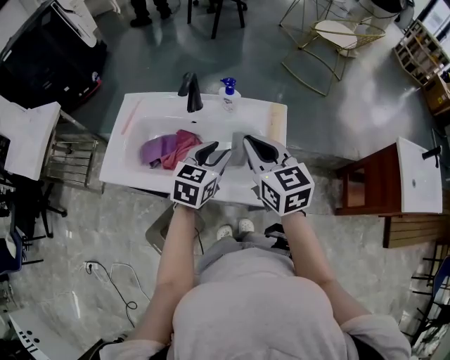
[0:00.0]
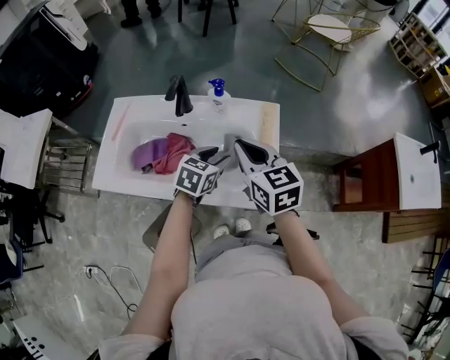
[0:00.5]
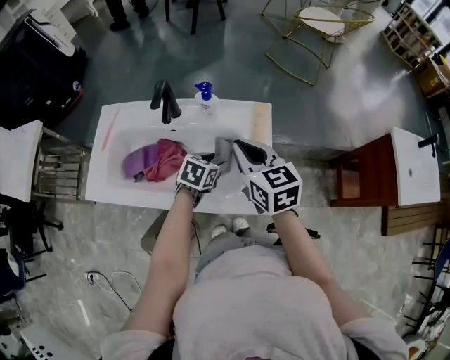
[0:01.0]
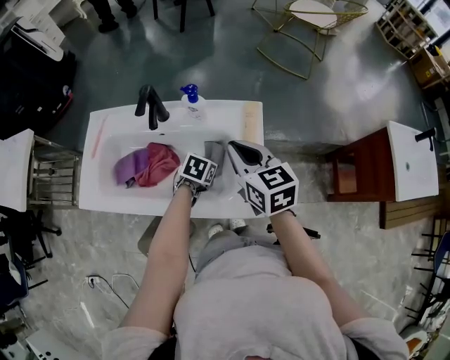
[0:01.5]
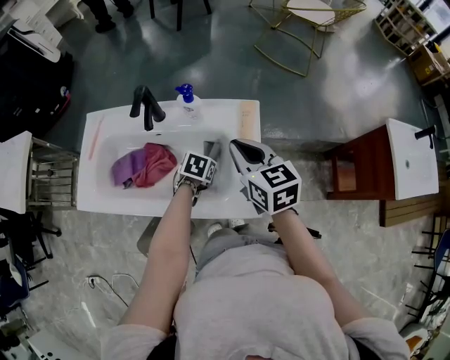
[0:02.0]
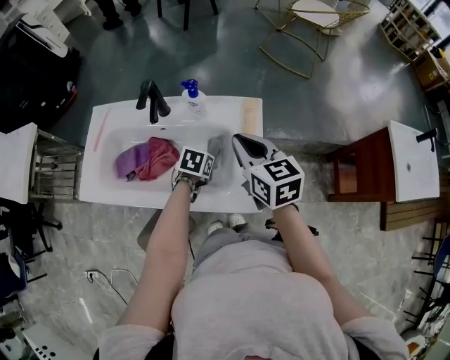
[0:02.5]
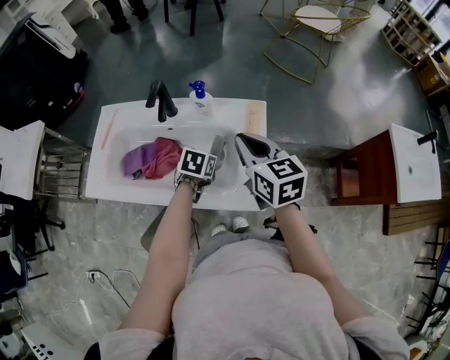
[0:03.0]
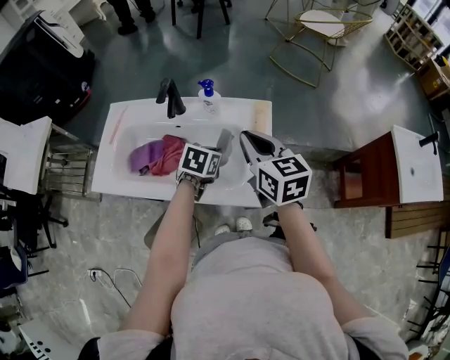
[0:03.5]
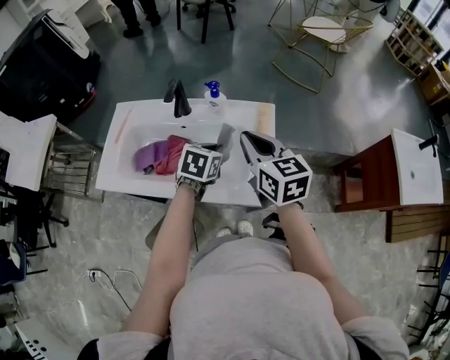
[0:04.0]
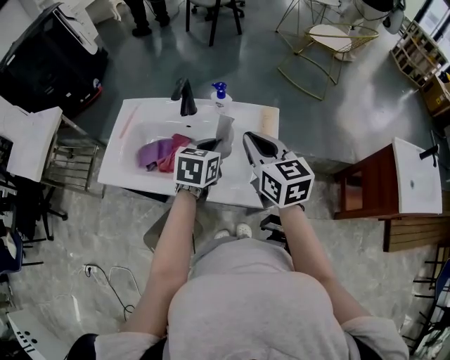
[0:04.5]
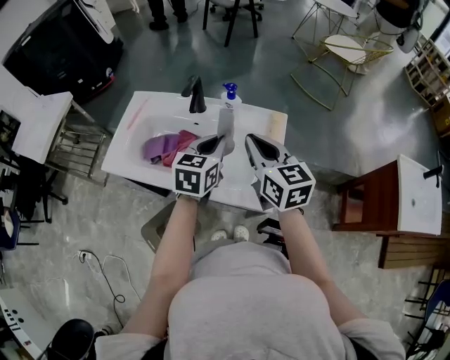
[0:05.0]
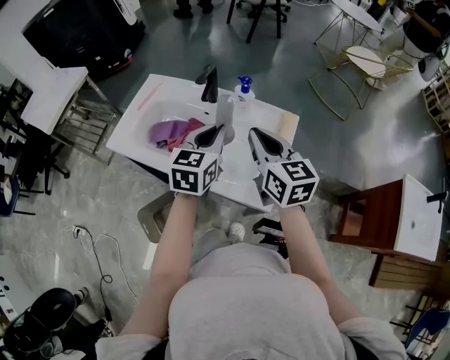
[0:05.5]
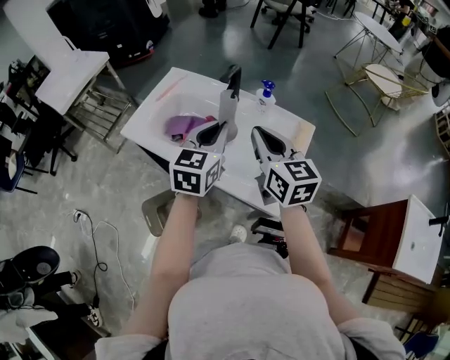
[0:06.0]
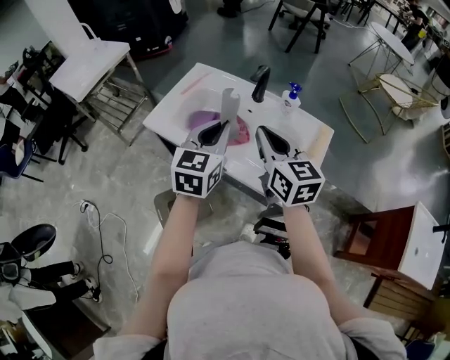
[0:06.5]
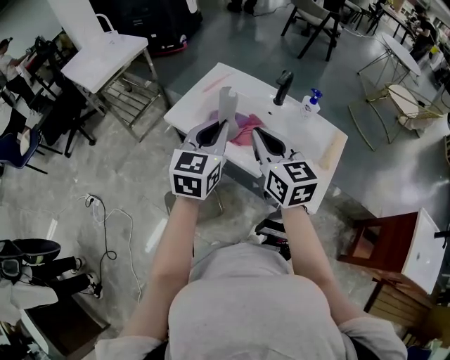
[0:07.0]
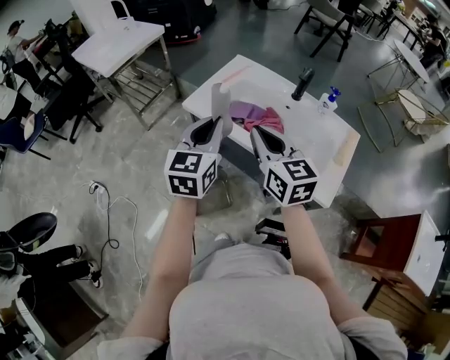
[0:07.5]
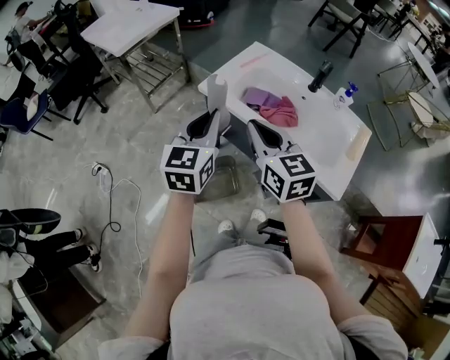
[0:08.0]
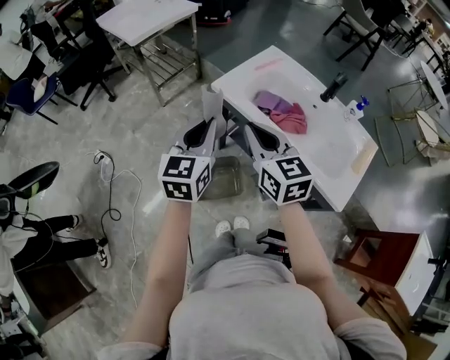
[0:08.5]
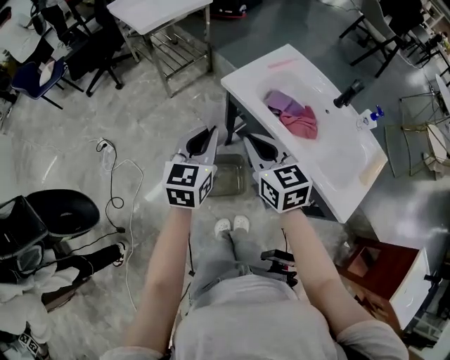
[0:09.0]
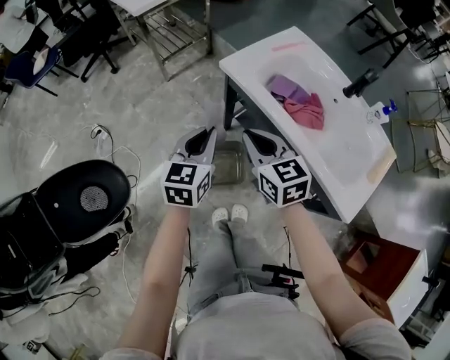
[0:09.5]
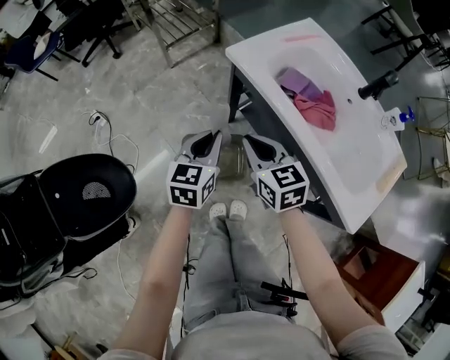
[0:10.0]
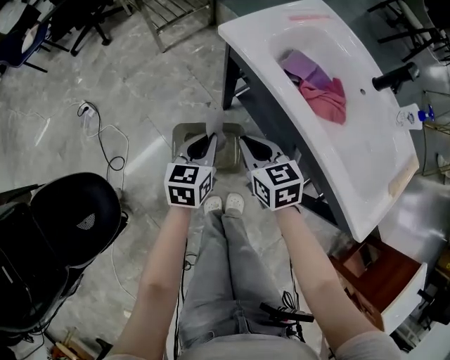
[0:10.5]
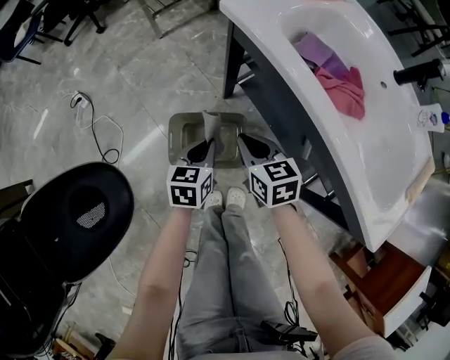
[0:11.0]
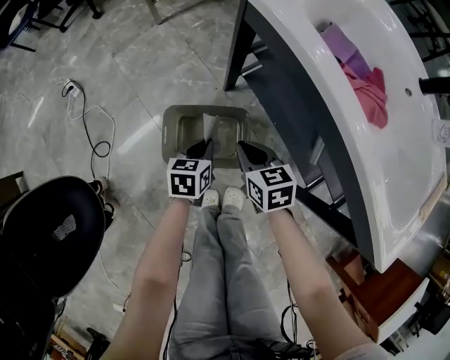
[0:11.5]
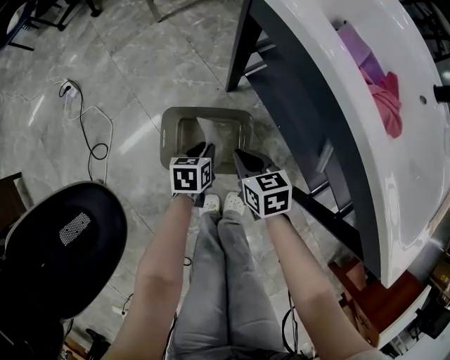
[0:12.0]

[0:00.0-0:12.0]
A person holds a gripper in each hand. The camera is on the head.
0:00.0 to 0:02.0: The right gripper is displaced downward, forward and to the right by some 10 cm, while the left gripper shifts about 20 cm downward, points its fingers some 40 degrees further downward, and closes up.
0:02.0 to 0:04.0: The left gripper is displaced upward by roughly 15 cm, and swivels about 20 degrees. The right gripper goes about 5 cm upward.
0:04.0 to 0:06.0: The left gripper travels upward and to the left by about 15 cm, and rotates approximately 40 degrees; the right gripper travels to the left by about 5 cm.
0:06.0 to 0:08.0: Both grippers travel together to the left, some 30 cm.
0:08.0 to 0:10.0: Both grippers move downward, about 20 cm. The right gripper turns by approximately 20 degrees.
0:10.0 to 0:12.0: The grippers both shift downward by about 35 cm. The right gripper swivels approximately 20 degrees; the left gripper rotates about 40 degrees.

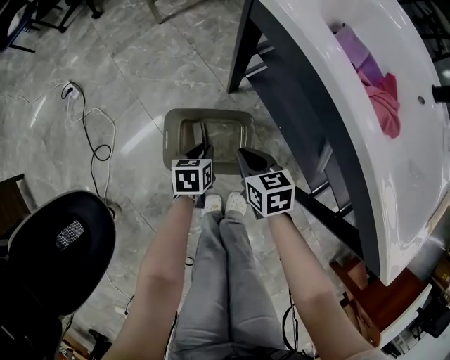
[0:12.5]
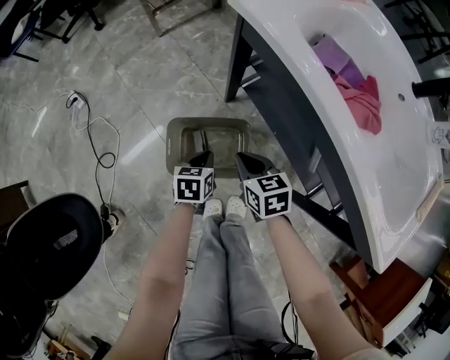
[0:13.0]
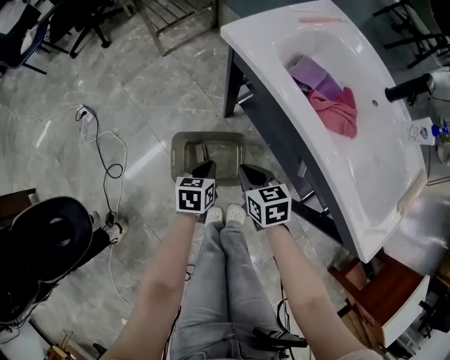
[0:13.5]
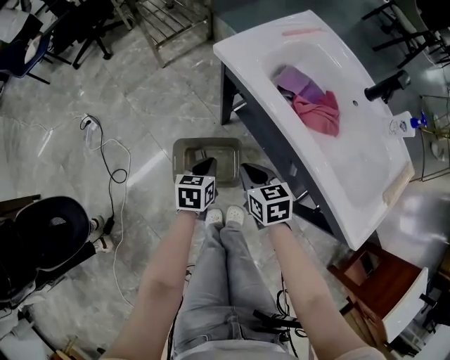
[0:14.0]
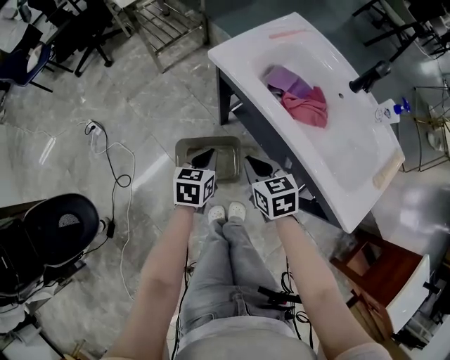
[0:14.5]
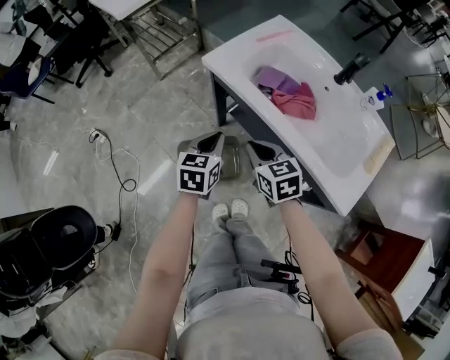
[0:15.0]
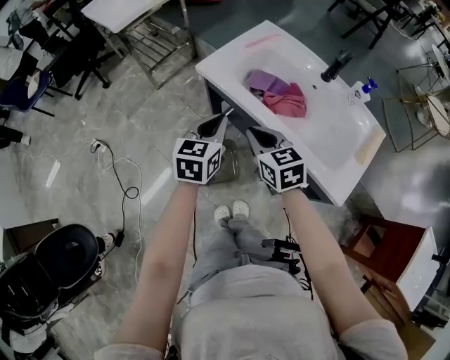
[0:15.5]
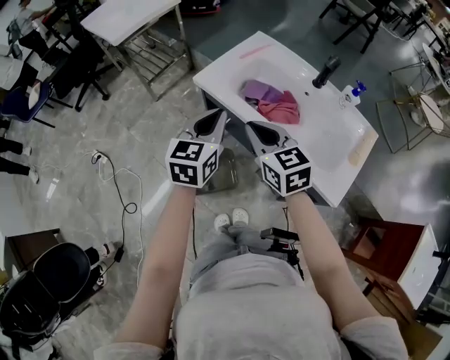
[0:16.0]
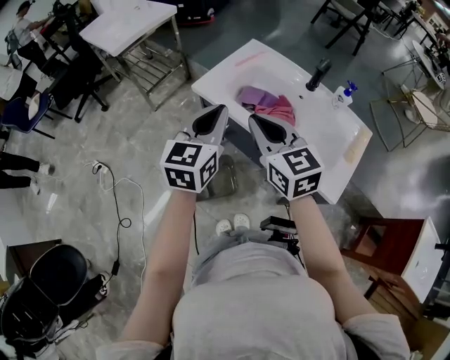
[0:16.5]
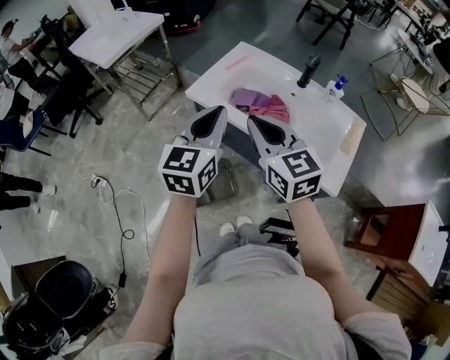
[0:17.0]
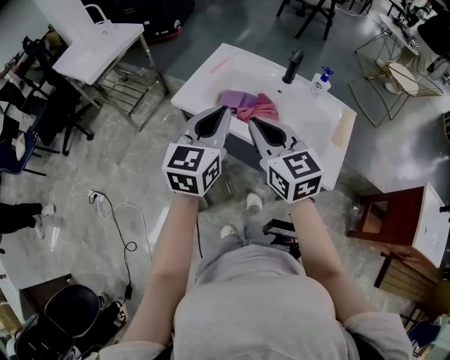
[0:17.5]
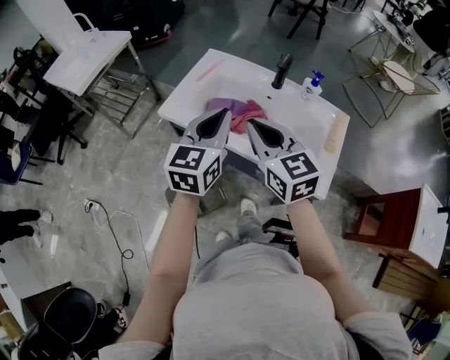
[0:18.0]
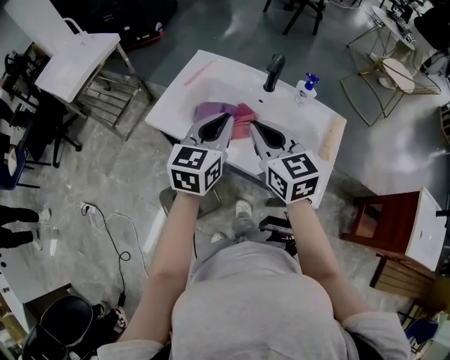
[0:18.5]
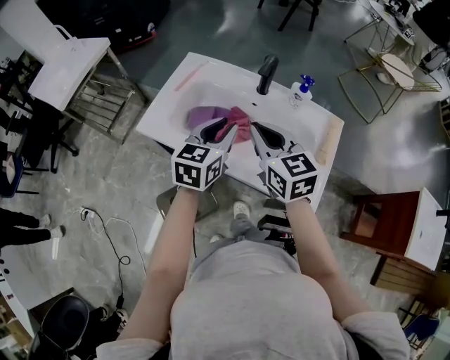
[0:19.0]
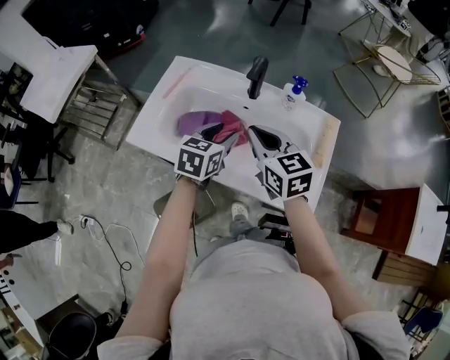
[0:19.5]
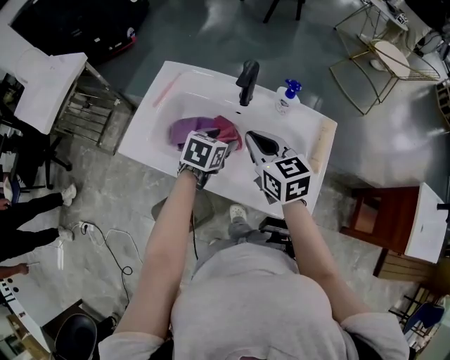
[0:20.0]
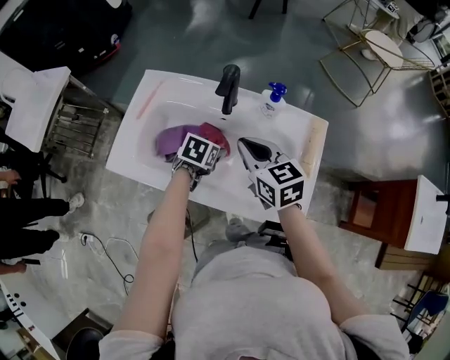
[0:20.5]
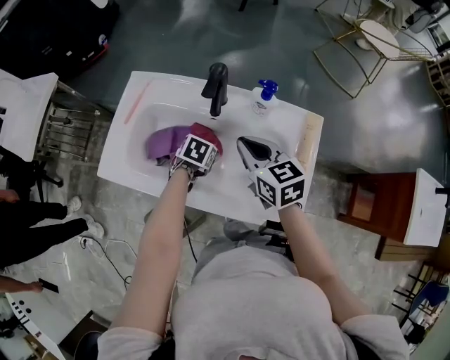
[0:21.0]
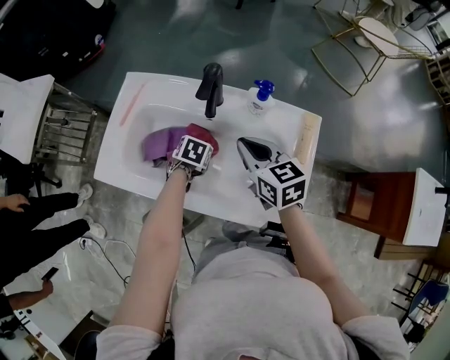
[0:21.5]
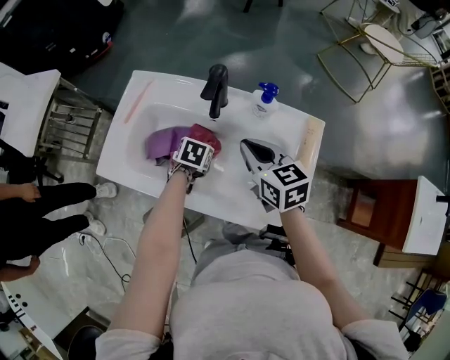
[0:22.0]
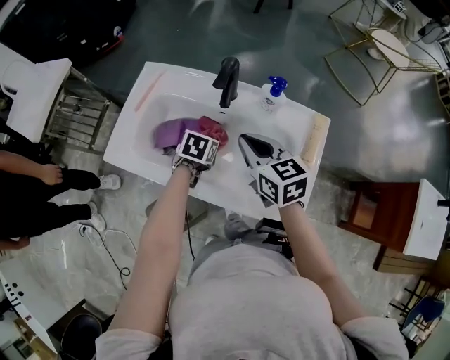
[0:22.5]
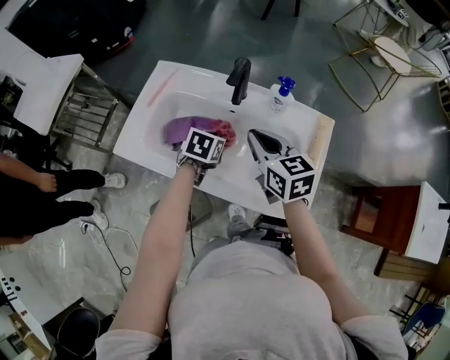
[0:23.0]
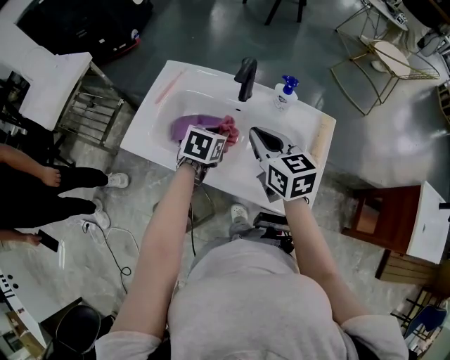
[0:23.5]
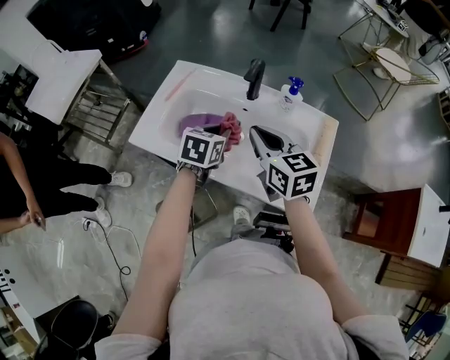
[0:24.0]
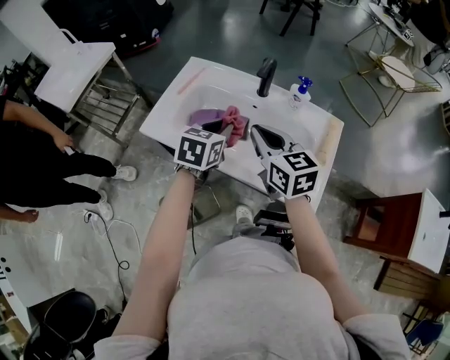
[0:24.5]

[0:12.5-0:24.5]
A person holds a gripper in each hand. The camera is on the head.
0:12.5 to 0:14.5: The two grippers go roughly 25 cm upward. The left gripper changes its angle by about 20 degrees.
0:14.5 to 0:16.5: Both grippers travel together upward, approximately 30 cm. The left gripper points its fingers about 30 degrees further upward, while the right gripper turns by approximately 30 degrees.
0:16.5 to 0:18.5: The two grippers go roughly 15 cm to the right and forward.
0:18.5 to 0:20.5: The left gripper heads downward and forward, covering approximately 30 cm, angles its fingers downward, by about 50 degrees, and opens its fingers. The right gripper is displaced forward, downward and to the right by approximately 15 cm.
0:20.5 to 0:22.5: The left gripper closes its fingers.
0:22.5 to 0:24.5: The right gripper travels upward, backward and to the left by some 10 cm. The left gripper is displaced upward by some 20 cm, and changes its angle by some 30 degrees.

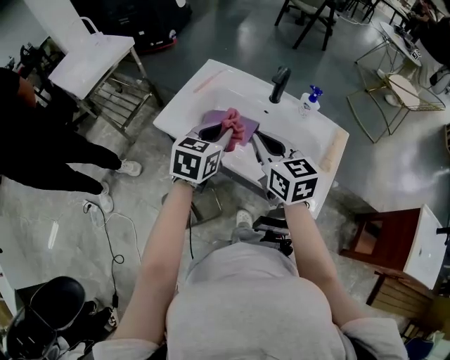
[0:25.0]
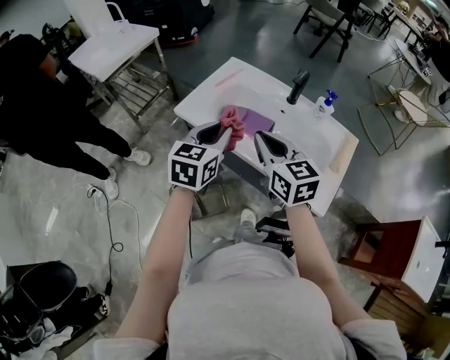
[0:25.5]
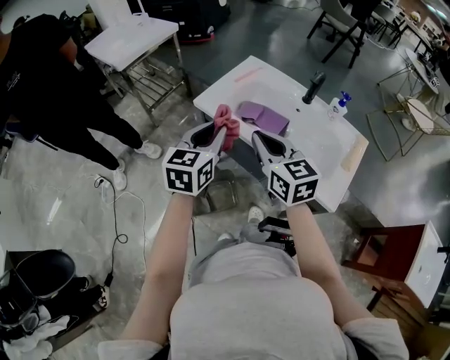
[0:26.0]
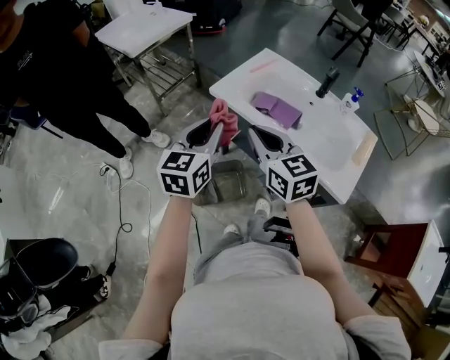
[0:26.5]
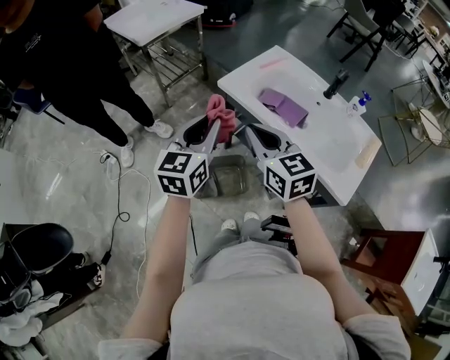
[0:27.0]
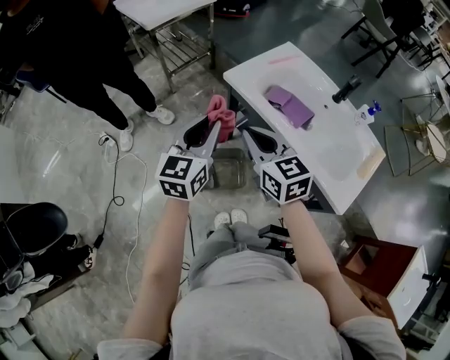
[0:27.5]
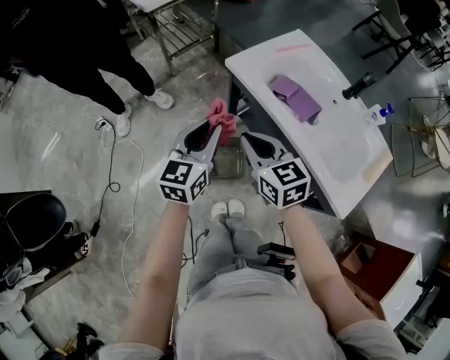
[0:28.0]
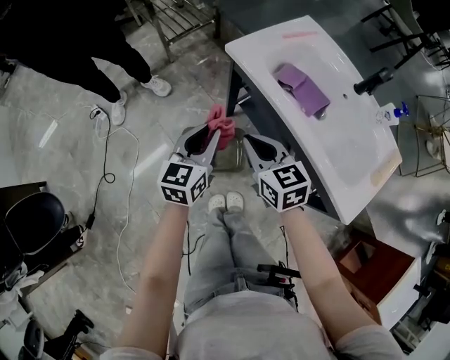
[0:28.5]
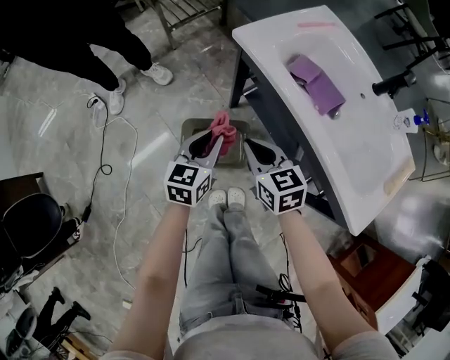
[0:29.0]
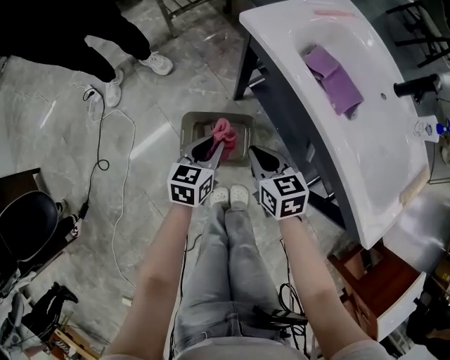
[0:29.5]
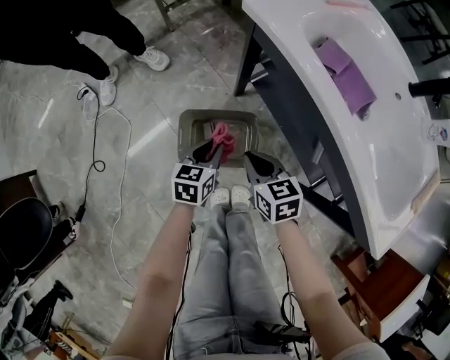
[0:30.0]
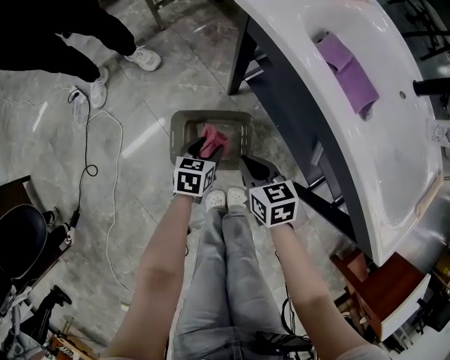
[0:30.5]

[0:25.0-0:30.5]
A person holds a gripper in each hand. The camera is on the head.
0:25.0 to 0:27.0: Both grippers travel together to the left and backward, roughly 25 cm. The left gripper turns by approximately 30 degrees.
0:27.0 to 0:28.5: The two grippers go approximately 15 cm downward.
0:28.5 to 0:30.5: Both grippers move downward, about 30 cm. The left gripper angles its fingers downward, by about 30 degrees, and opens up.
